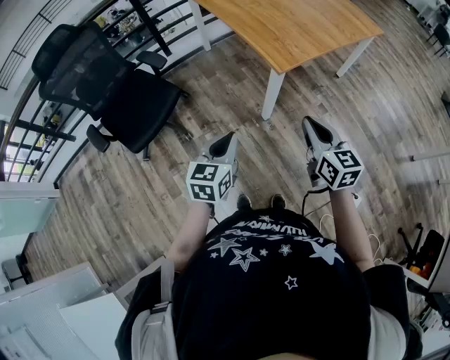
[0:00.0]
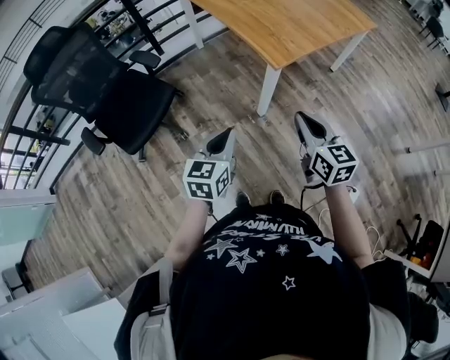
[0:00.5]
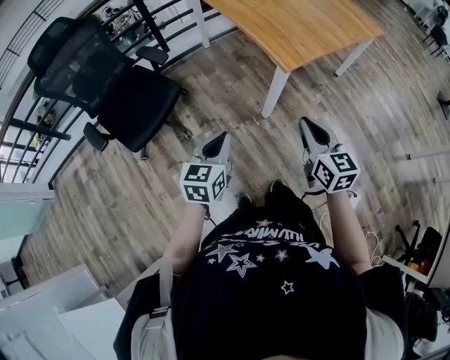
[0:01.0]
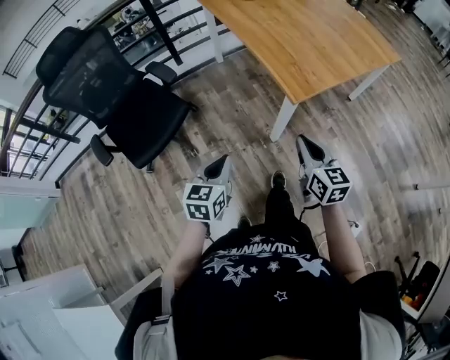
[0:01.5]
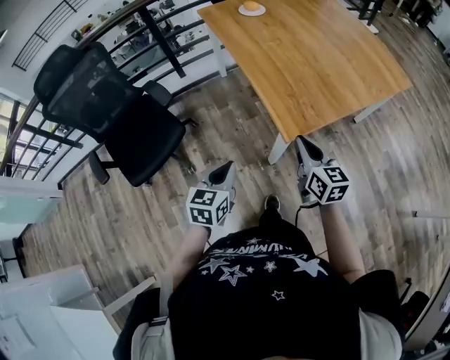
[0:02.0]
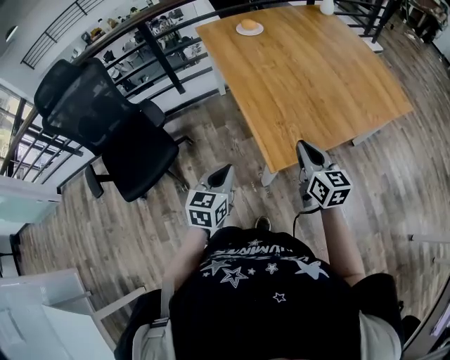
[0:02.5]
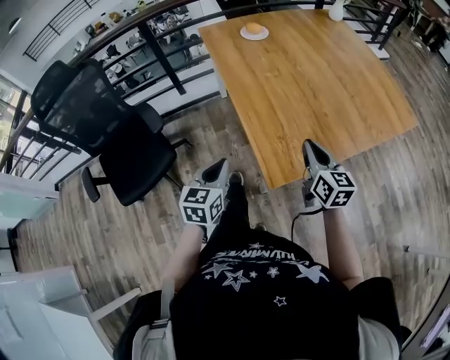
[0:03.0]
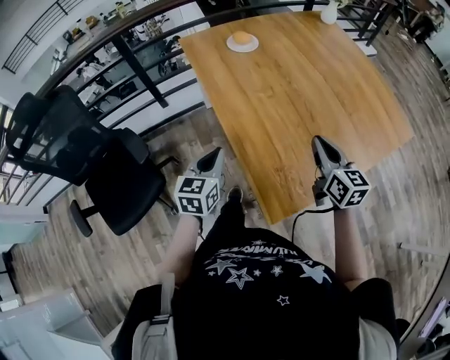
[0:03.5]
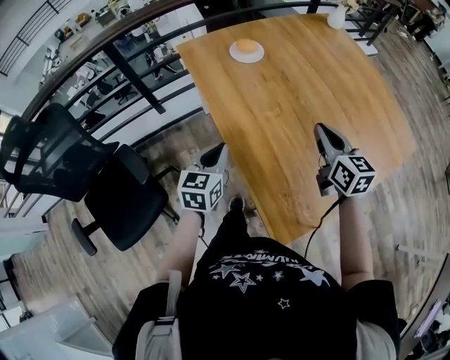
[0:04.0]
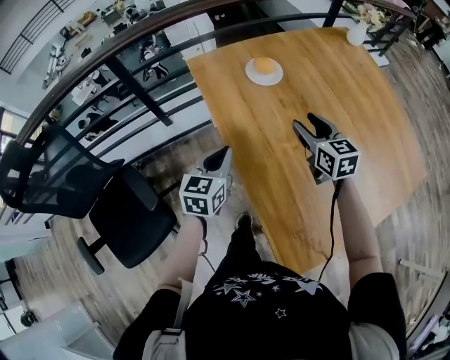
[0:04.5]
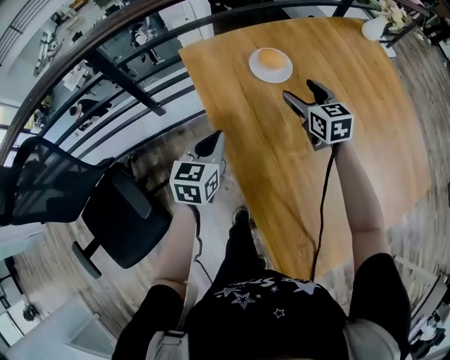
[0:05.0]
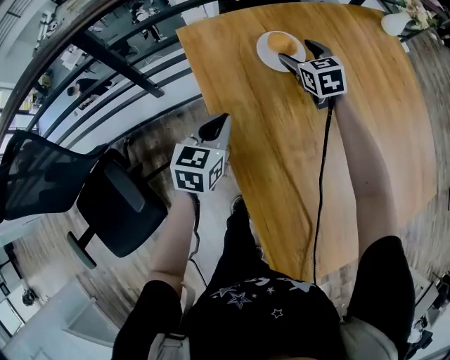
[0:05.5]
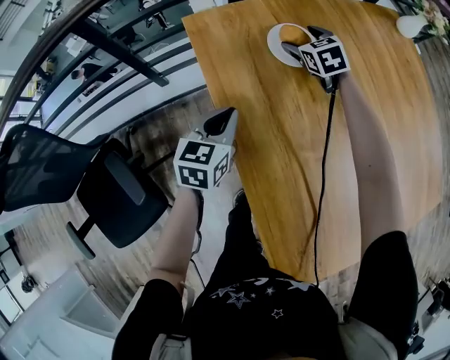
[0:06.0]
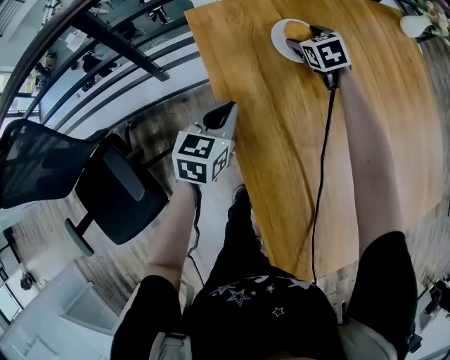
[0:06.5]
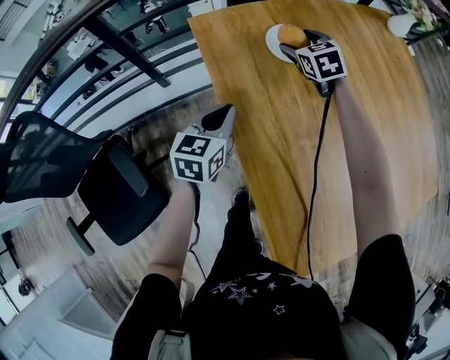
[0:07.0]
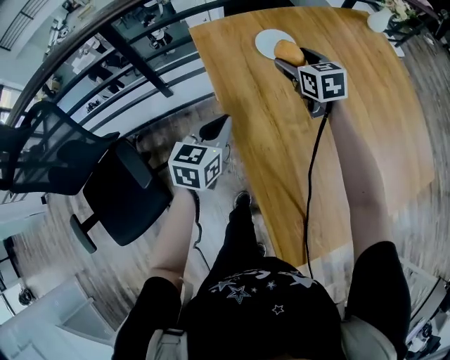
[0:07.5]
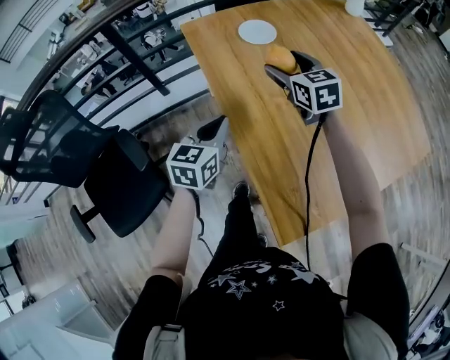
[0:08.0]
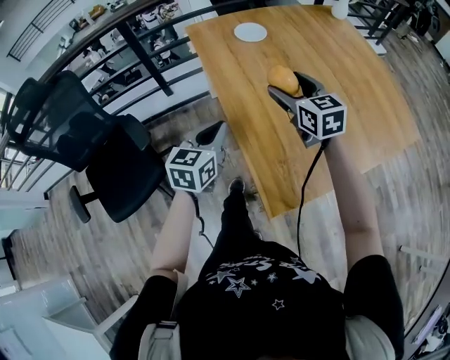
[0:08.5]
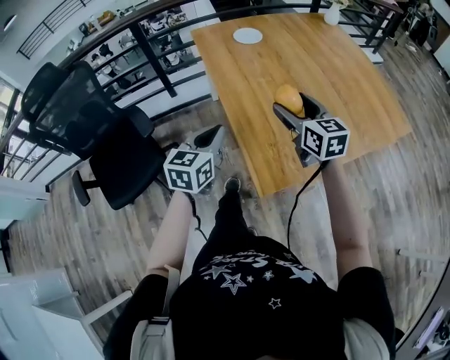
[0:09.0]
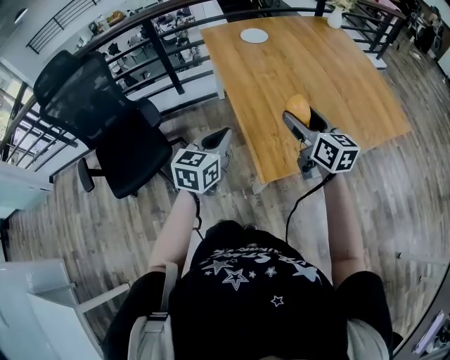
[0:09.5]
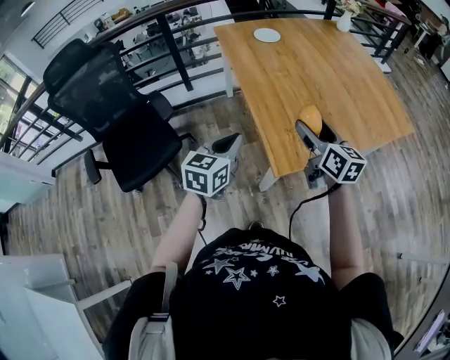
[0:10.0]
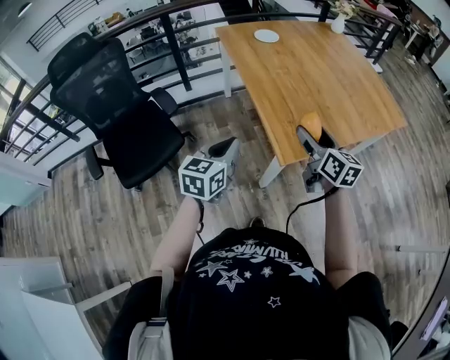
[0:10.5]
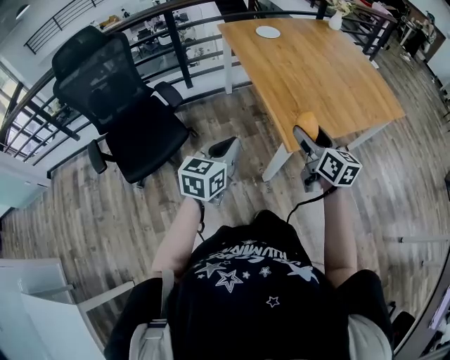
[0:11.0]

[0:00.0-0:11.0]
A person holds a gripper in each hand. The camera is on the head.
0:00.0 to 0:02.0: Both grippers travel together forward, roughly 25 cm.
0:02.0 to 0:03.5: Both grippers travel together forward, roughly 30 cm.
0:03.5 to 0:05.5: The left gripper heads forward, covering roughly 35 cm. The right gripper goes approximately 60 cm forward, swivels roughly 30 degrees, and opens up.
0:05.5 to 0:07.5: The two grippers go about 15 cm backward and upward.
0:07.5 to 0:09.0: Both grippers move backward, approximately 40 cm.
0:09.0 to 0:11.0: Both grippers move backward, roughly 25 cm.

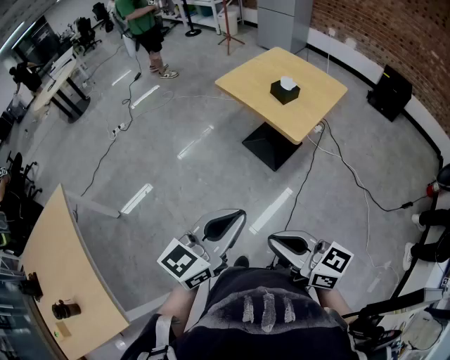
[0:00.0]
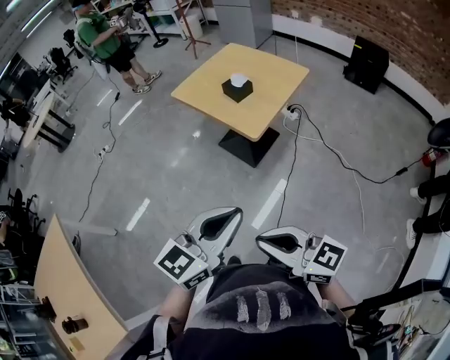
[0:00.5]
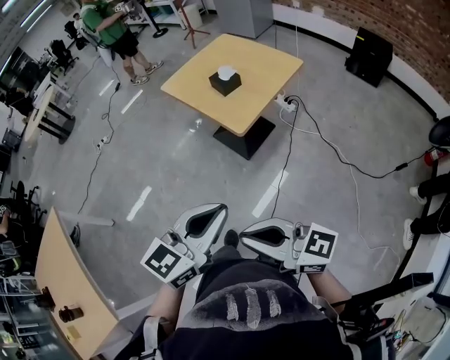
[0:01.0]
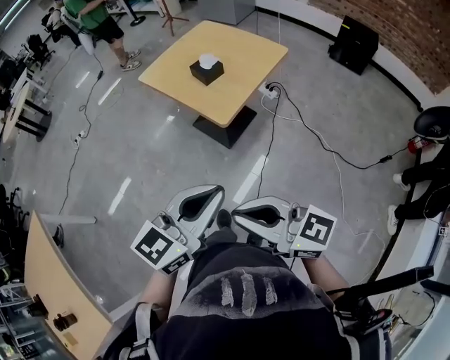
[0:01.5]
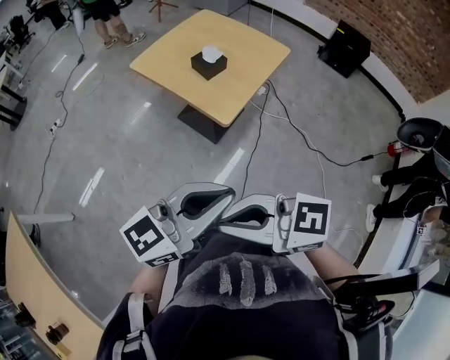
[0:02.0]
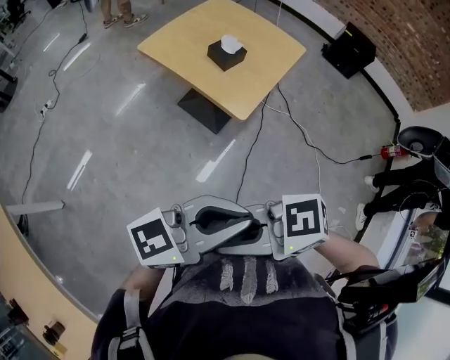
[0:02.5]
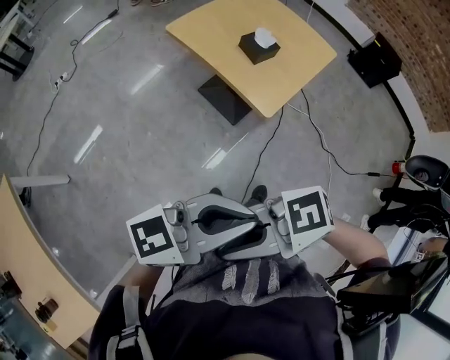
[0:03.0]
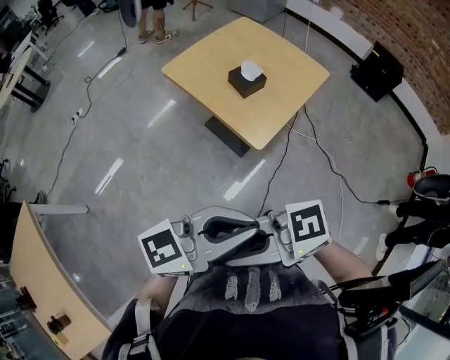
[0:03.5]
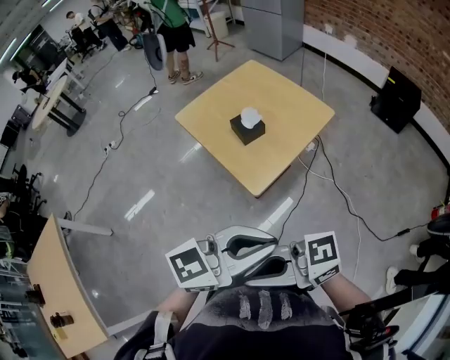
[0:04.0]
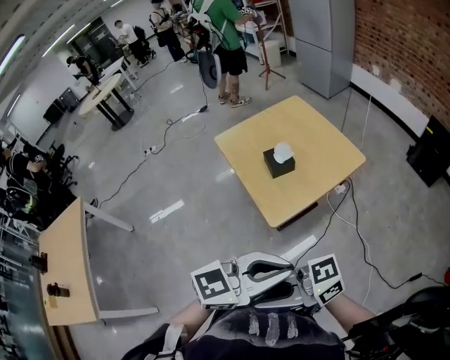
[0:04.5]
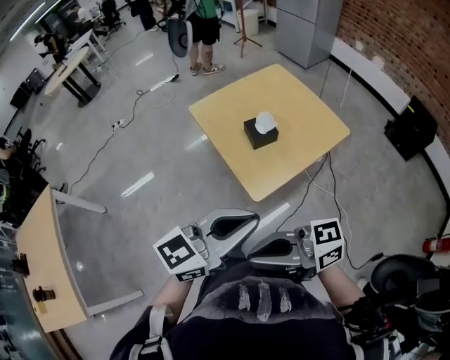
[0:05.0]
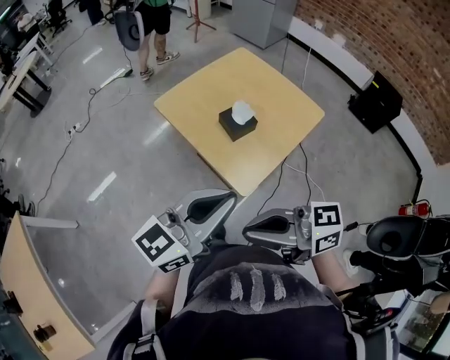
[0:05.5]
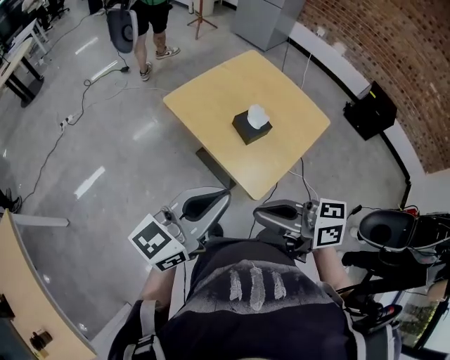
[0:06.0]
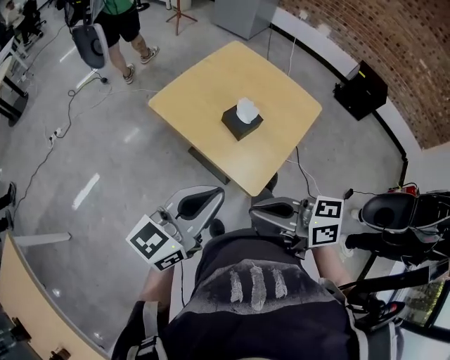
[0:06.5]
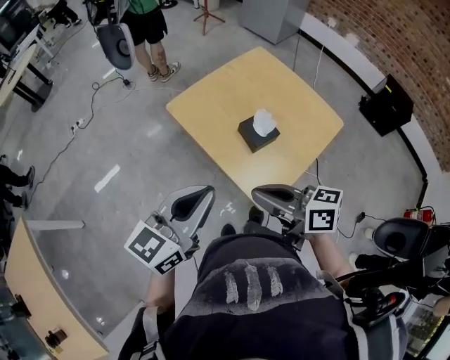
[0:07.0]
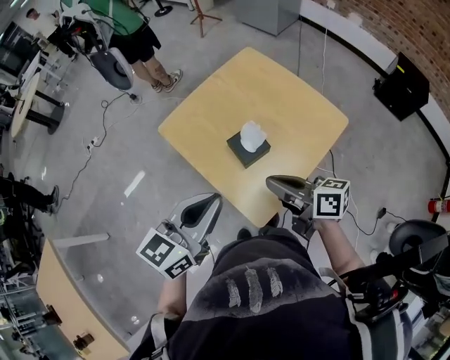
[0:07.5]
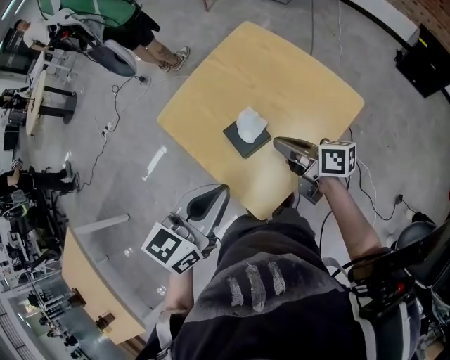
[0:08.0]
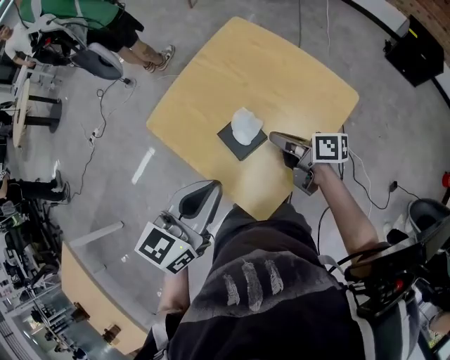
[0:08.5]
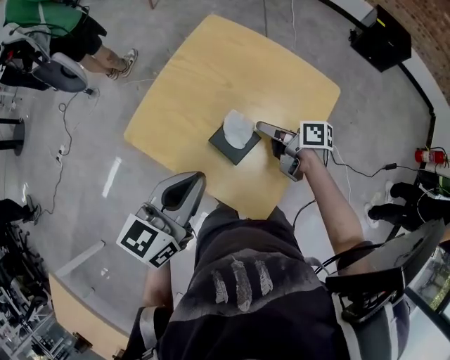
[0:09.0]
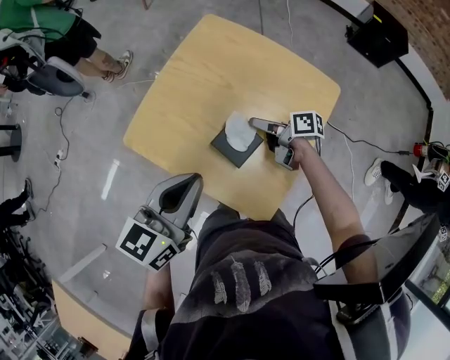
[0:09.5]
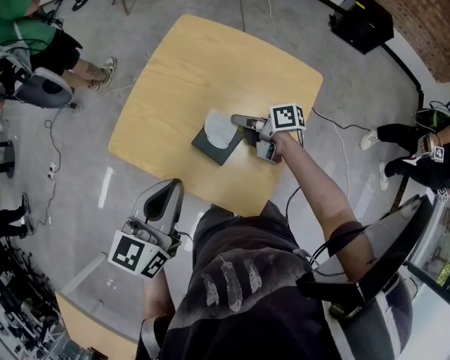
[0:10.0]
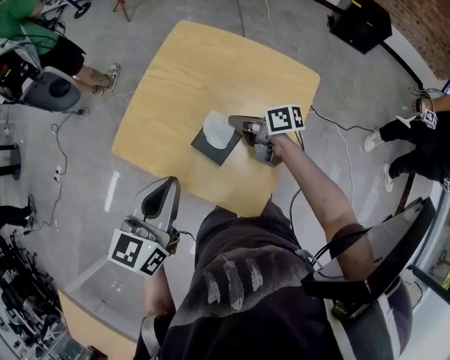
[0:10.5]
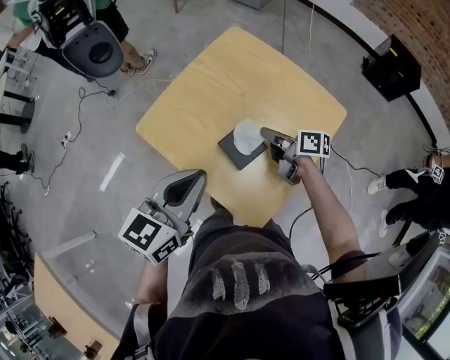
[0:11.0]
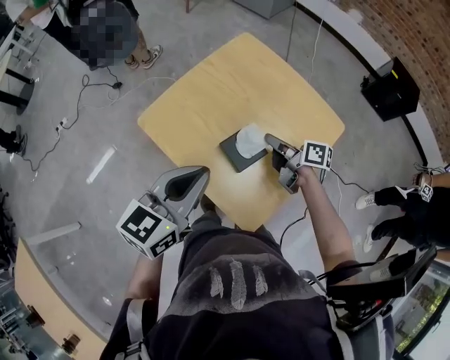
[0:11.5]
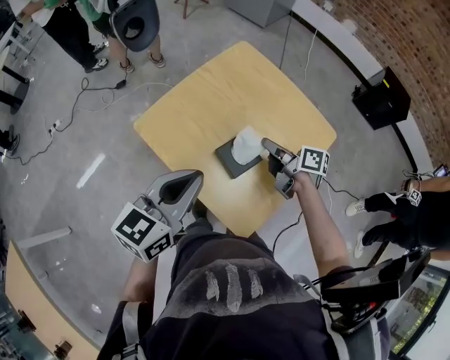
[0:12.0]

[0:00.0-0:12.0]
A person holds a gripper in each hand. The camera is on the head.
0:00.0 to 0:02.0: The left gripper moves about 20 cm, and changes its angle by some 20 degrees. The right gripper moves about 15 cm, and rotates some 20 degrees.
0:02.0 to 0:04.0: The left gripper shifts by about 15 cm. The right gripper ends up about 10 cm from where it was, and turns by about 30 degrees.
0:04.0 to 0:06.0: The left gripper shifts by approximately 25 cm, and changes its angle by some 20 degrees, while the right gripper changes place by about 25 cm, and turns by roughly 40 degrees.
0:06.0 to 0:08.0: The right gripper heads forward, to the right and downward, covering some 40 cm, and changes its angle by about 30 degrees, while the left gripper goes some 20 cm to the right and forward, and turns by some 30 degrees.
0:08.0 to 0:10.0: The left gripper goes approximately 10 cm to the left and forward; the right gripper heads downward and forward, covering some 15 cm, changes its angle by about 20 degrees, and opens, then closes again.
0:10.0 to 0:12.0: The right gripper is displaced upward by roughly 5 cm.

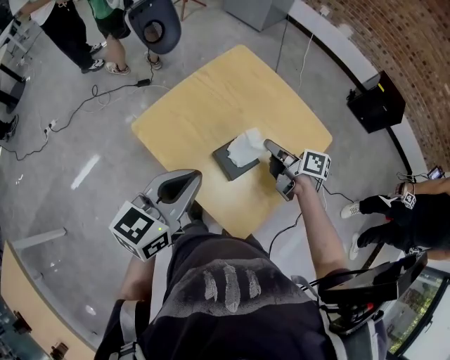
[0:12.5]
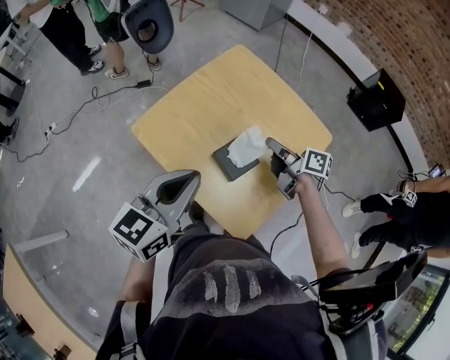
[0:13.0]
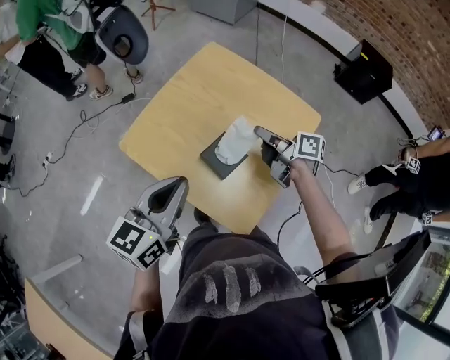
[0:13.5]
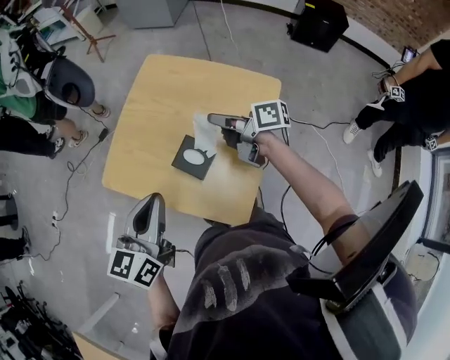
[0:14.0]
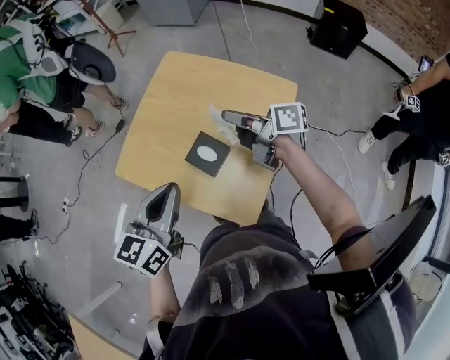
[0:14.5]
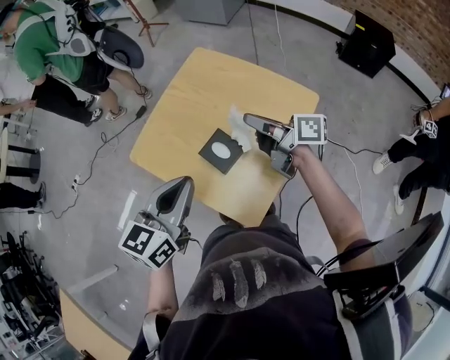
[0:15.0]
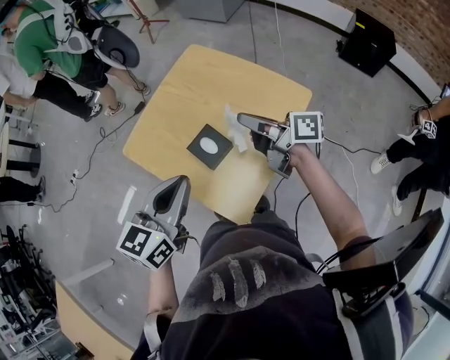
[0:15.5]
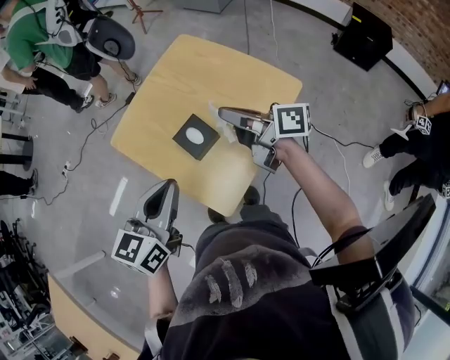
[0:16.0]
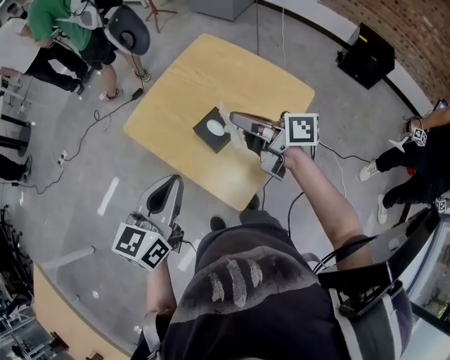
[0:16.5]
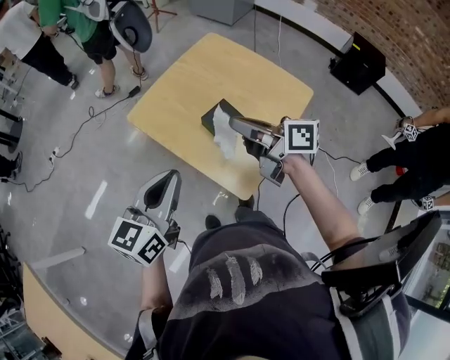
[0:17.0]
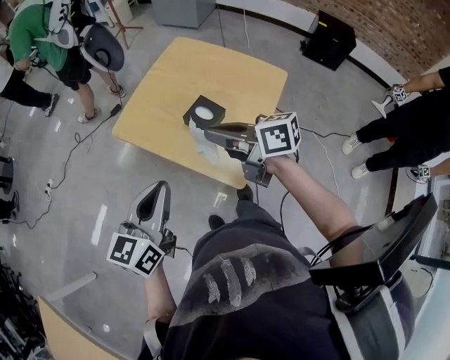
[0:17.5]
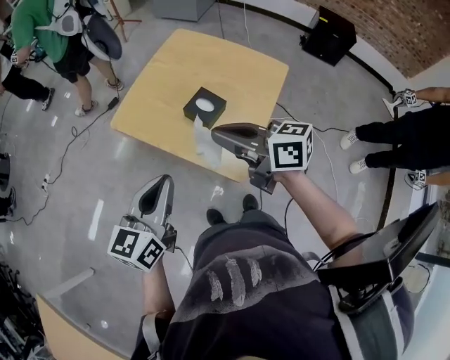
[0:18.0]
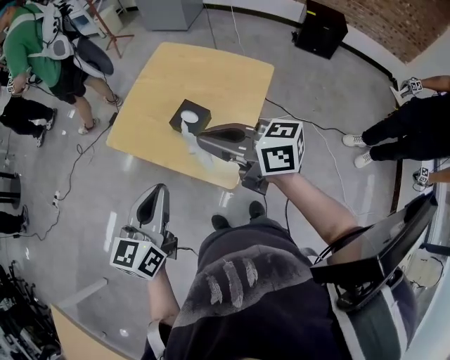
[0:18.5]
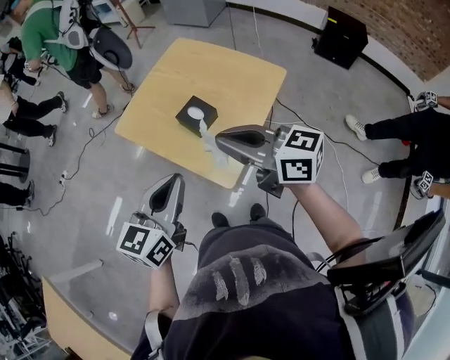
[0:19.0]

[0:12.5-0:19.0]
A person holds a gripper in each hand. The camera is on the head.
0:12.5 to 0:14.5: The left gripper shifts some 5 cm to the right. Meanwhile the right gripper moves upward, approximately 10 cm.
0:14.5 to 0:17.0: The right gripper moves to the left, backward and upward, approximately 20 cm. Meanwhile the left gripper goes about 15 cm to the left and backward.
0:17.0 to 0:19.0: The right gripper travels backward and to the right by roughly 15 cm, and swivels approximately 30 degrees. The left gripper heads to the right and backward, covering some 15 cm.
